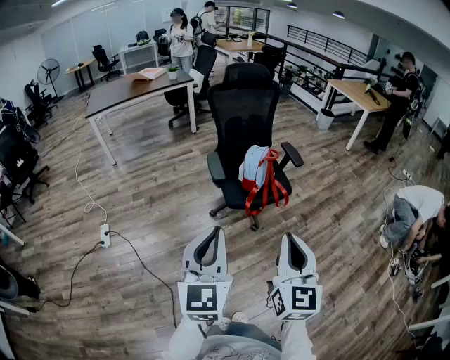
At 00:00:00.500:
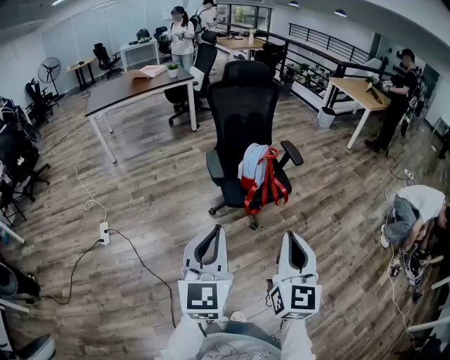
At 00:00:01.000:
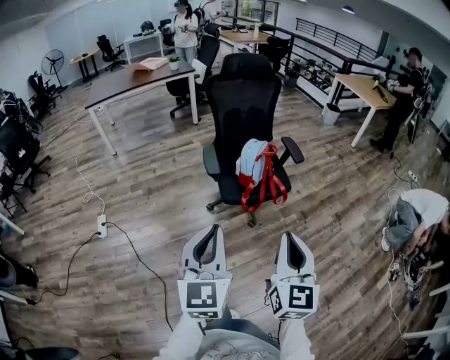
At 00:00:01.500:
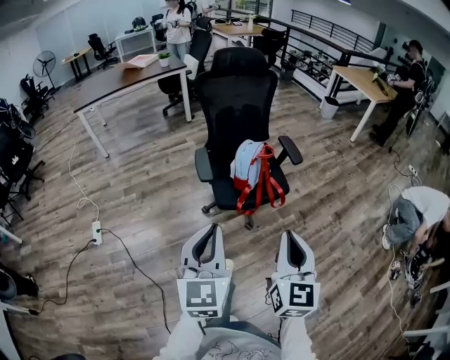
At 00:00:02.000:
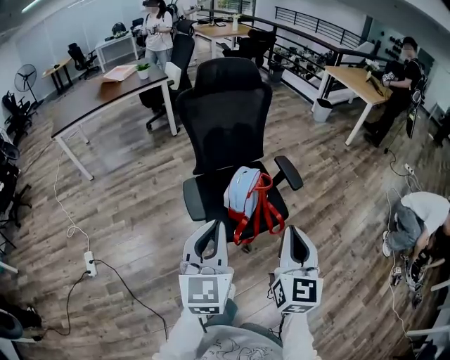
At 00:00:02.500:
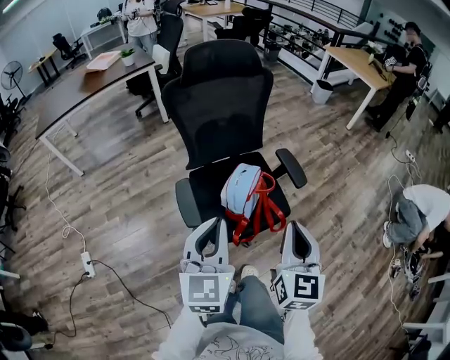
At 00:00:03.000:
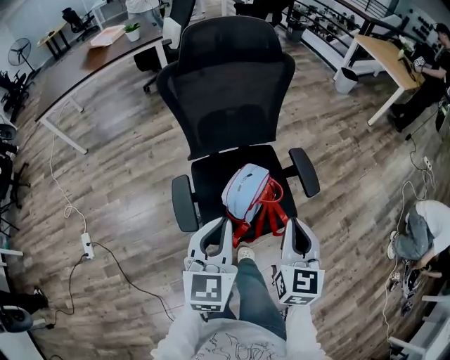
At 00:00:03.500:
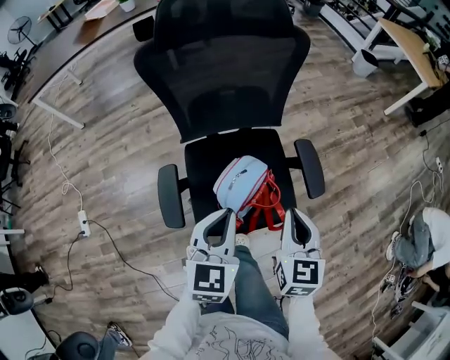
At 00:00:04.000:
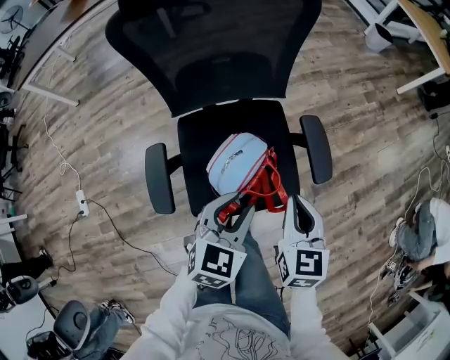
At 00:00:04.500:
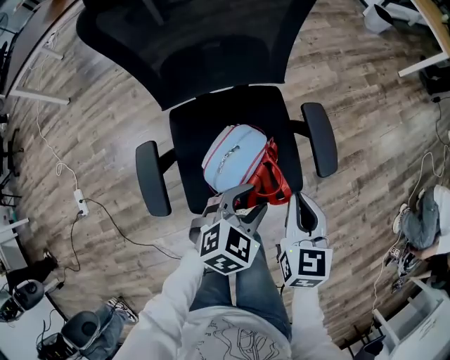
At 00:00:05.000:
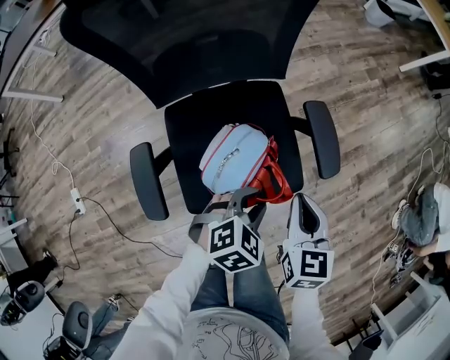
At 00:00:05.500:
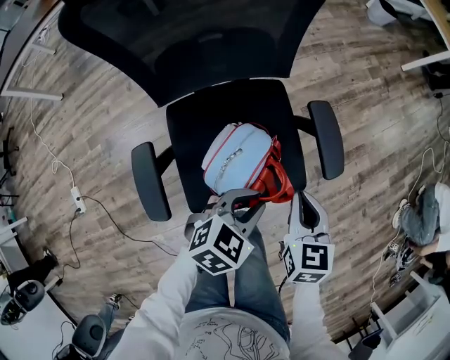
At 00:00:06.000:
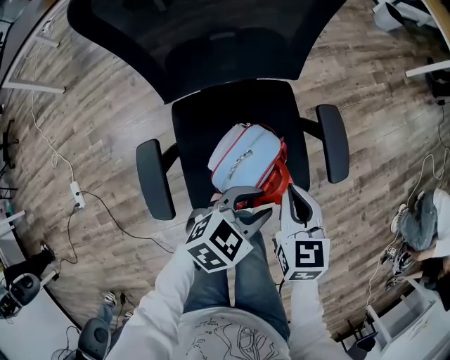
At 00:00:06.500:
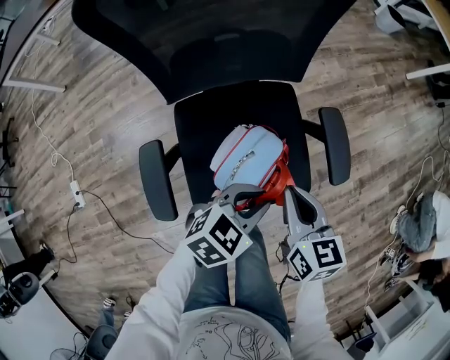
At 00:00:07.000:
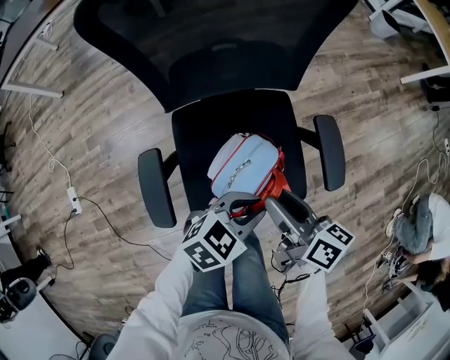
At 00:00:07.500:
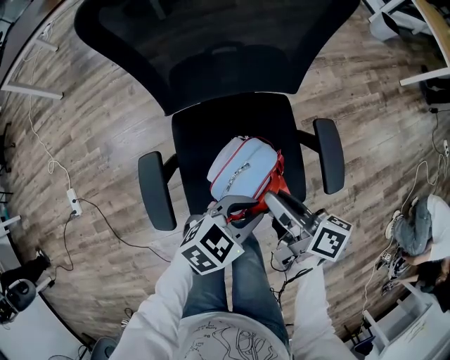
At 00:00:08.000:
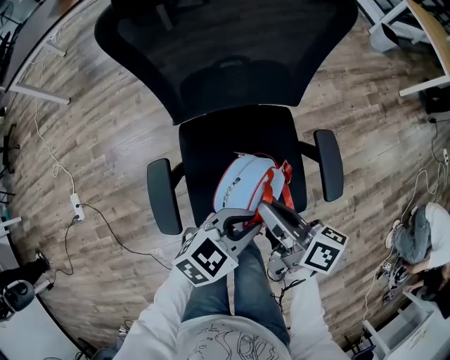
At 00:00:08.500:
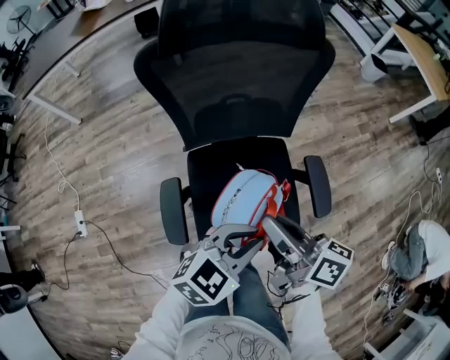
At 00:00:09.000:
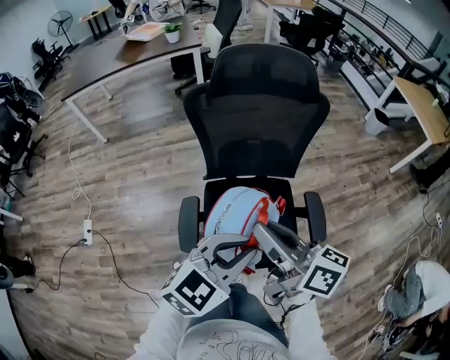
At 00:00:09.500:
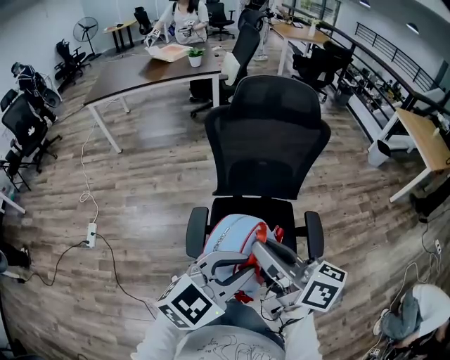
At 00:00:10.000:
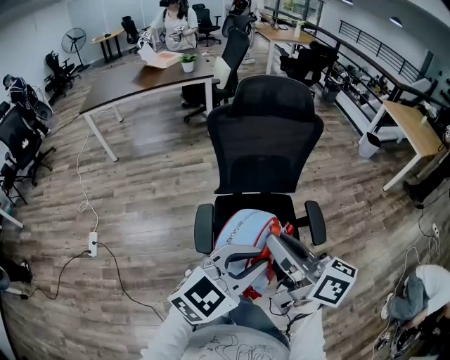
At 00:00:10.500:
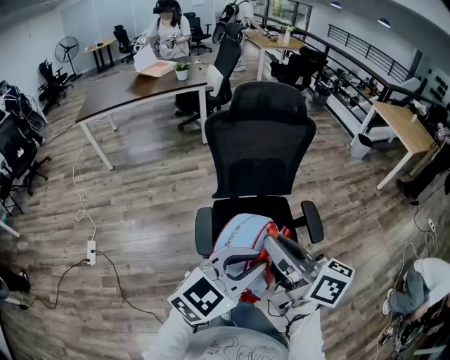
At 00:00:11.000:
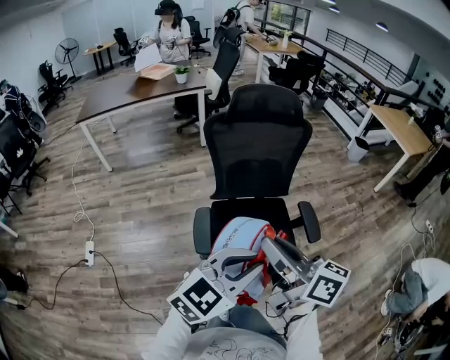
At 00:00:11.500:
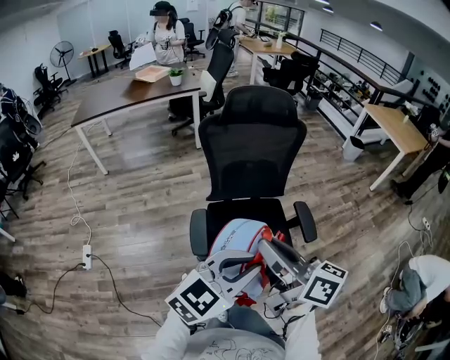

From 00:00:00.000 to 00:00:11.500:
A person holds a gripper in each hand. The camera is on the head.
From 00:00:00.000 to 00:00:02.000: Both grippers travel together forward, approximately 35 cm.
From 00:00:02.000 to 00:00:04.000: The right gripper goes approximately 40 cm forward and downward, and turns by some 30 degrees; the left gripper goes some 40 cm forward, downward and to the right, tilts its fingers some 30 degrees downward, and opens its fingers.
From 00:00:04.000 to 00:00:06.000: The left gripper shifts approximately 10 cm downward, and changes its angle by some 30 degrees. Meanwhile the right gripper goes some 10 cm downward and to the left.
From 00:00:06.000 to 00:00:07.500: The right gripper heads to the left, covering some 5 cm, twists approximately 50 degrees clockwise, seen from behind, and opens and closes again.
From 00:00:07.500 to 00:00:09.500: The left gripper moves upward, some 30 cm, and changes its angle by roughly 30 degrees. Meanwhile the right gripper travels upward and backward by some 35 cm, and swivels about 30 degrees.
From 00:00:09.500 to 00:00:11.500: The grippers both shift backward by roughly 10 cm.

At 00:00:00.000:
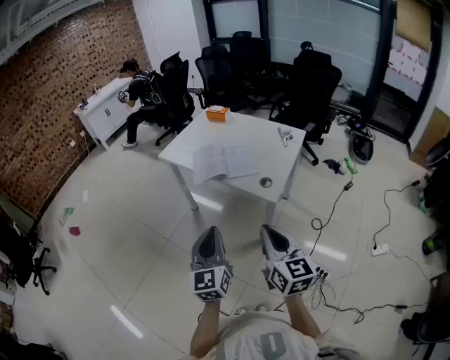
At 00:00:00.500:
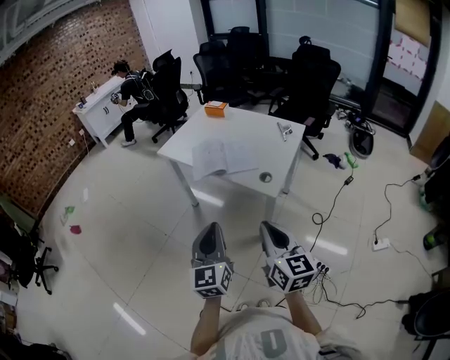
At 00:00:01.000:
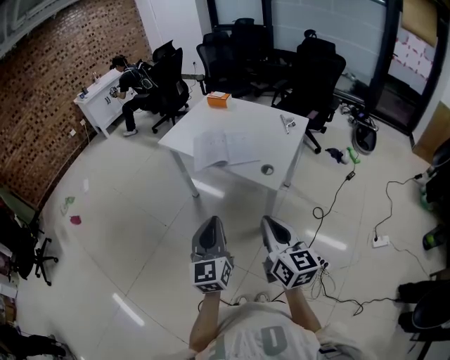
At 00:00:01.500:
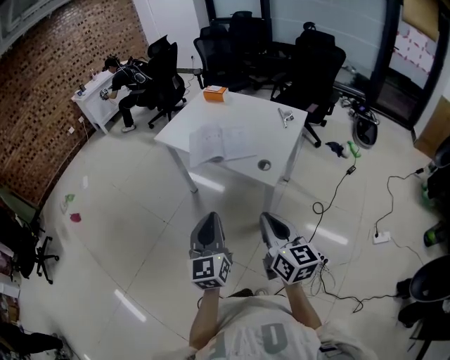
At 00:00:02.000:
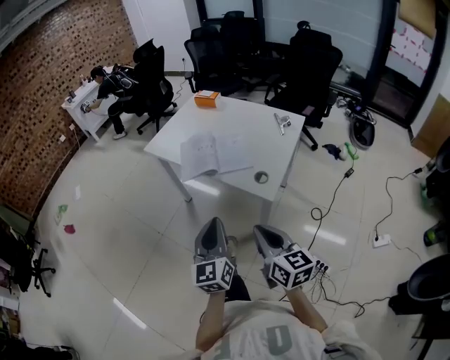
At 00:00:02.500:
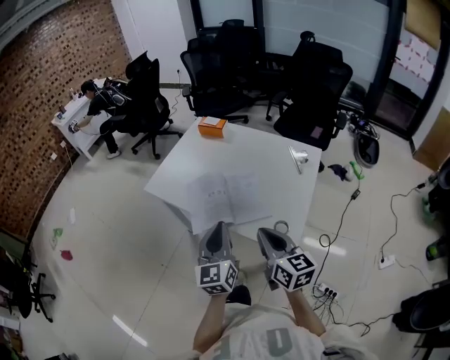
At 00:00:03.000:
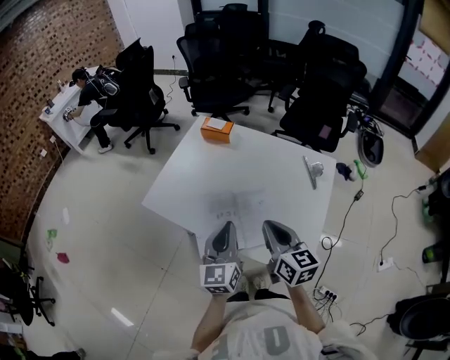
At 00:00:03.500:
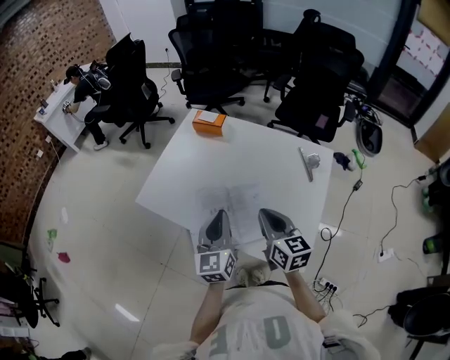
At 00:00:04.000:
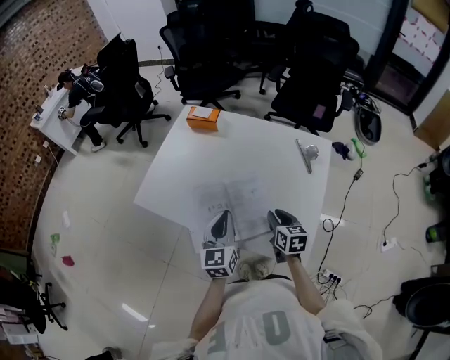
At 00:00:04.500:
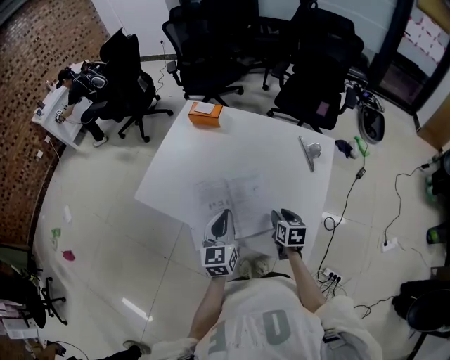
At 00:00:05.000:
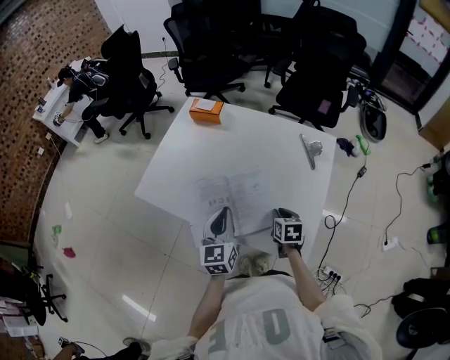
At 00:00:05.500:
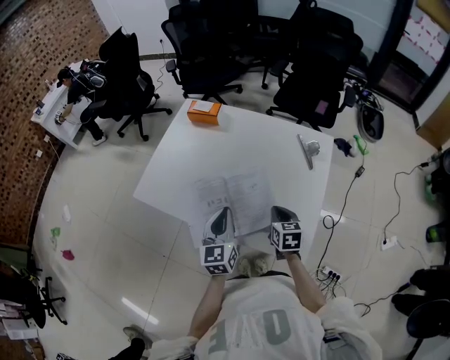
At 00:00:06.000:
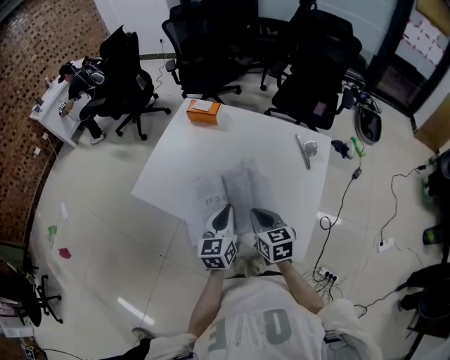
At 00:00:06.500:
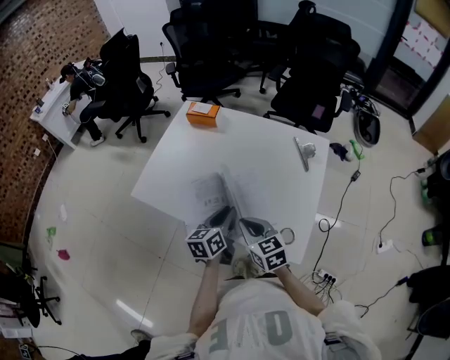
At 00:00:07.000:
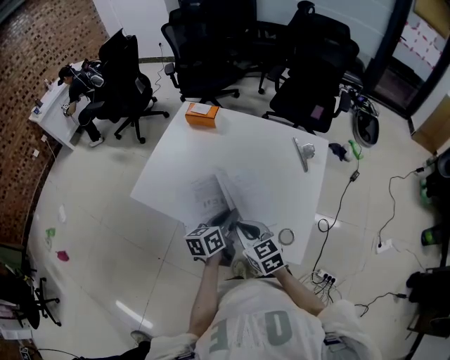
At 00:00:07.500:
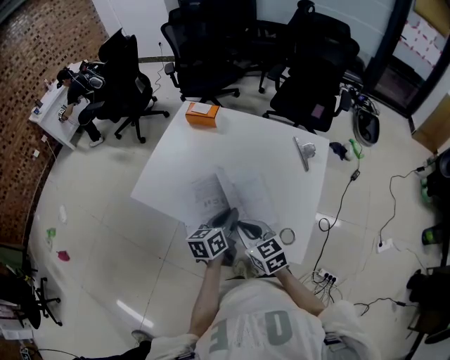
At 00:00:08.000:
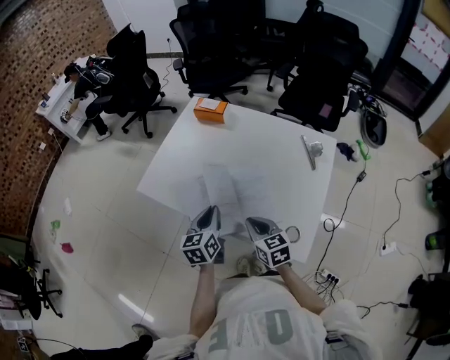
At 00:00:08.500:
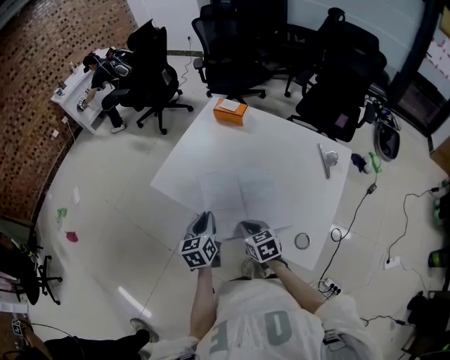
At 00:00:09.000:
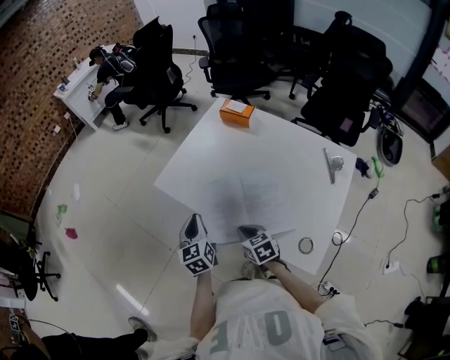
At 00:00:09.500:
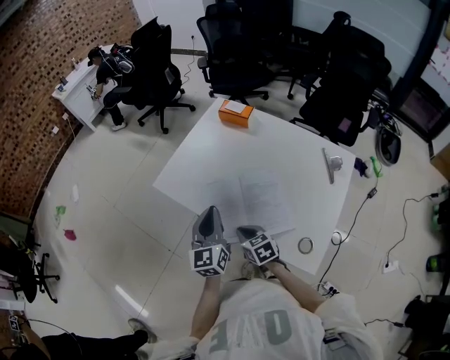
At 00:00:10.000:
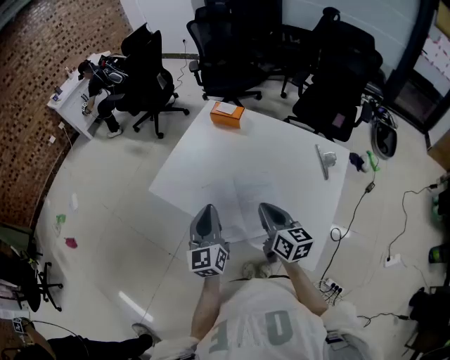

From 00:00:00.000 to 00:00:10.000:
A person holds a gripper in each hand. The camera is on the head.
From 00:00:00.000 to 00:00:02.000: The right gripper goes approximately 10 cm downward and forward. Meanwhile the left gripper travels forward and downward by some 10 cm.
From 00:00:02.000 to 00:00:04.000: The left gripper moves forward, about 40 cm. Meanwhile the right gripper heads forward and downward, covering some 40 cm, changes its angle by some 30 degrees, and opens its fingers.
From 00:00:04.000 to 00:00:06.000: The right gripper goes some 10 cm to the left and upward, and closes.
From 00:00:06.000 to 00:00:08.000: The left gripper moves to the left, some 5 cm, while the right gripper ends up roughly 5 cm from where it was.
From 00:00:08.000 to 00:00:10.000: The left gripper is displaced upward by approximately 10 cm, reaches about 15 cm to the left, then returns, and turns by about 30 degrees. Meanwhile the right gripper goes approximately 10 cm upward and forward, and rotates roughly 20 degrees.

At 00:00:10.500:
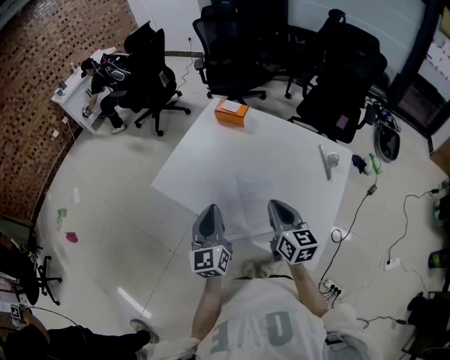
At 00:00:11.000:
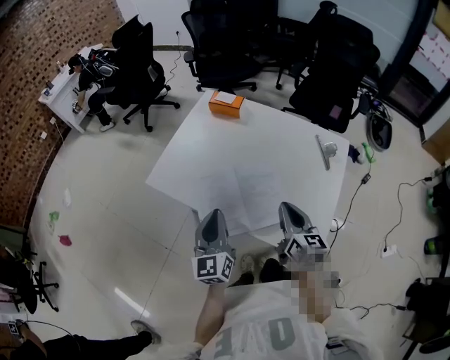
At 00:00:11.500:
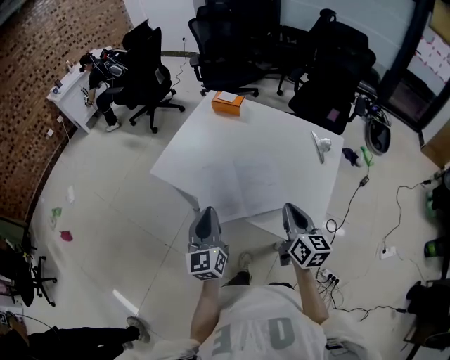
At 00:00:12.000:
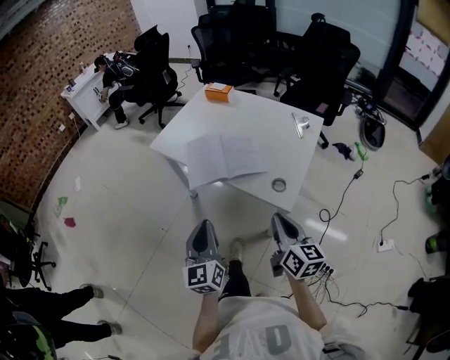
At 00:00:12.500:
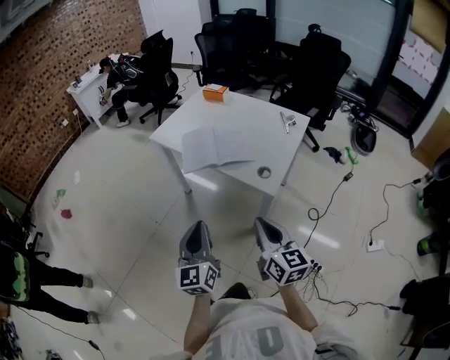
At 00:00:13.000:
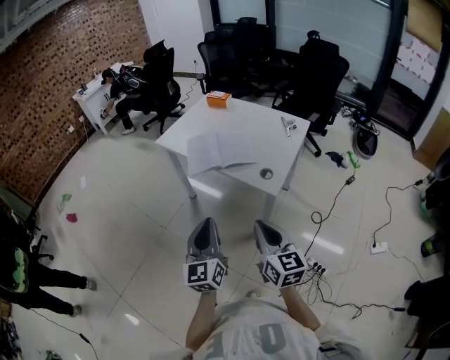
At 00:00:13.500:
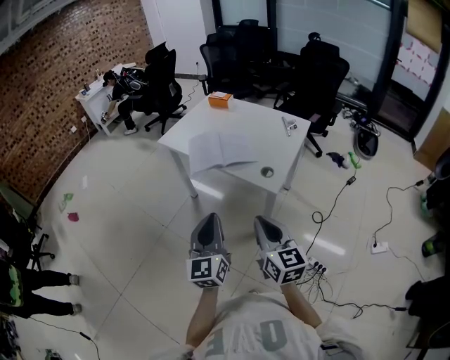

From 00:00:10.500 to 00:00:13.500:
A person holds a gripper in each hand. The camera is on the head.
From 00:00:10.500 to 00:00:12.000: The two grippers go approximately 30 cm backward.
From 00:00:12.000 to 00:00:13.500: The grippers both shift backward and upward by about 15 cm.

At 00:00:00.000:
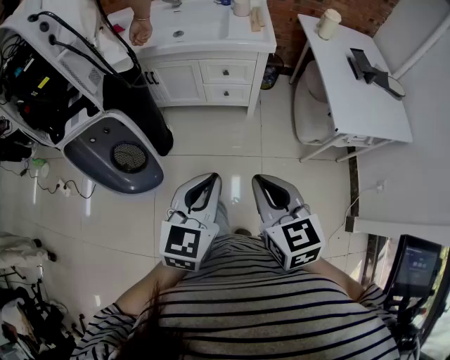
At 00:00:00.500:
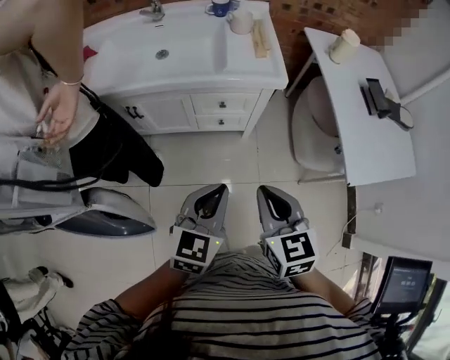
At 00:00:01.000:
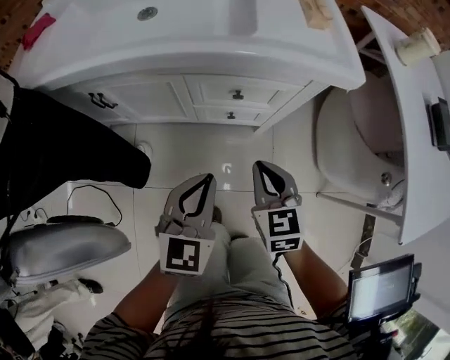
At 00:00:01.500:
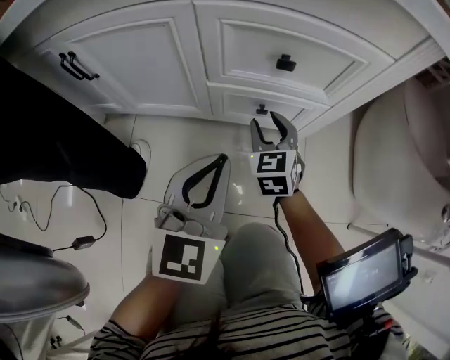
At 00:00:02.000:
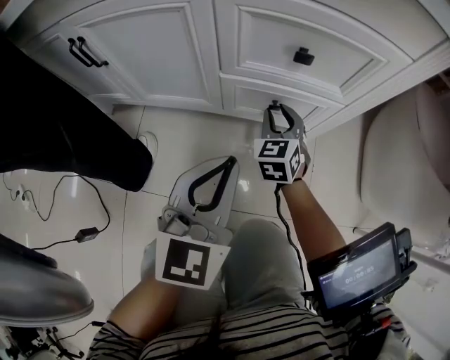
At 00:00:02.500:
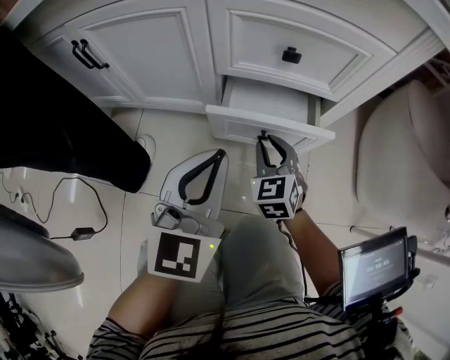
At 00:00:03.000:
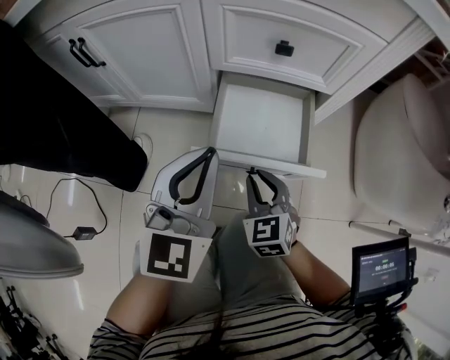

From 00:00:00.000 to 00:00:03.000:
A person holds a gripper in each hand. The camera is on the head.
From 00:00:00.000 to 00:00:01.500: The two grippers travel together, forward, roughly 50 cm. The two grippers go roughly 50 cm downward. The right gripper turns by about 20 degrees, and opens.
From 00:00:01.500 to 00:00:03.000: The right gripper travels backward by about 15 cm, and closes up.
